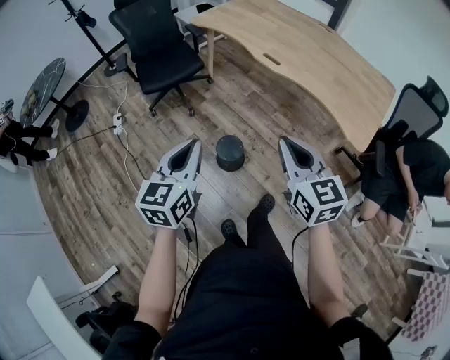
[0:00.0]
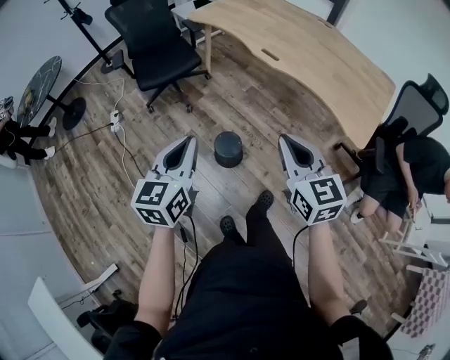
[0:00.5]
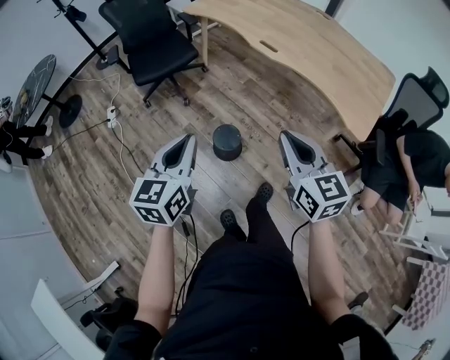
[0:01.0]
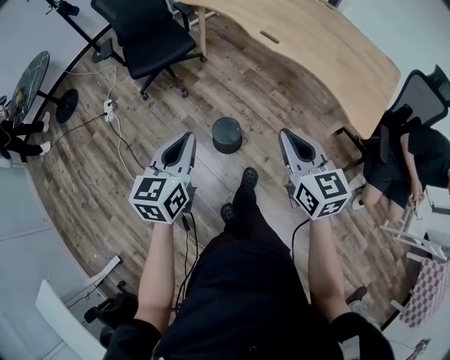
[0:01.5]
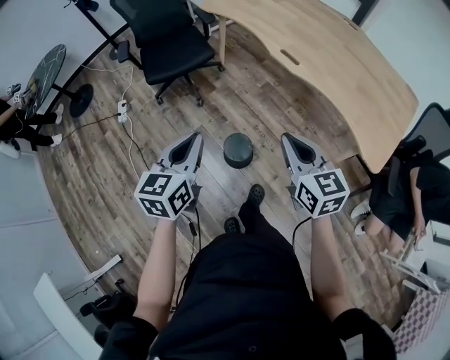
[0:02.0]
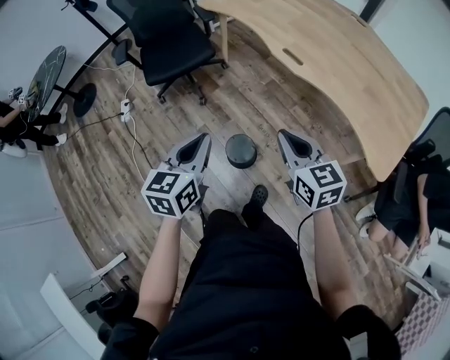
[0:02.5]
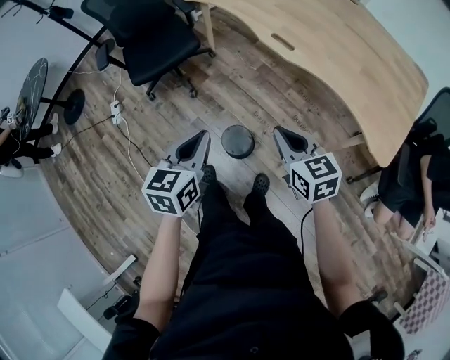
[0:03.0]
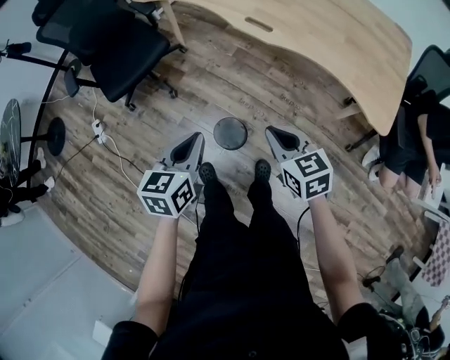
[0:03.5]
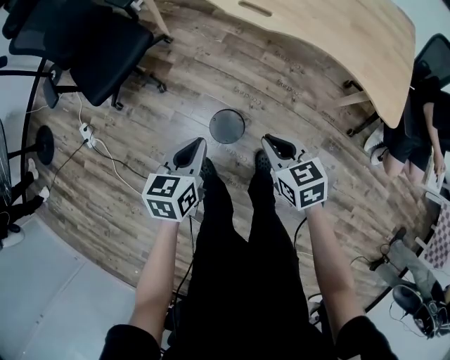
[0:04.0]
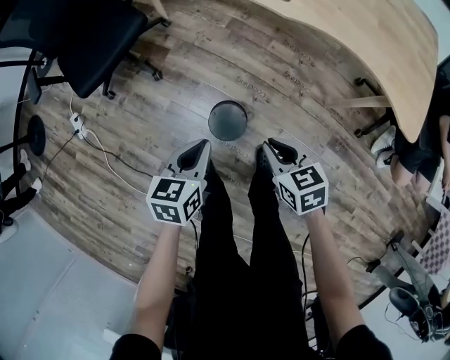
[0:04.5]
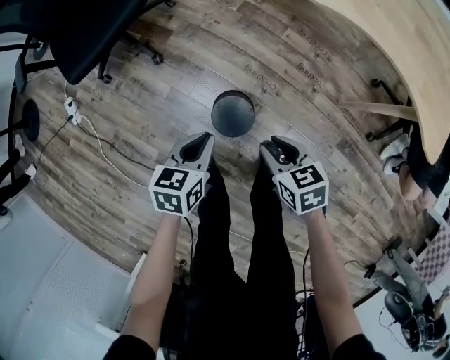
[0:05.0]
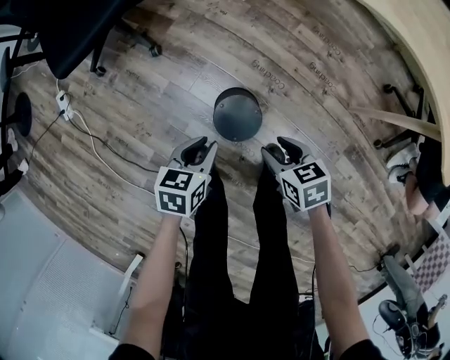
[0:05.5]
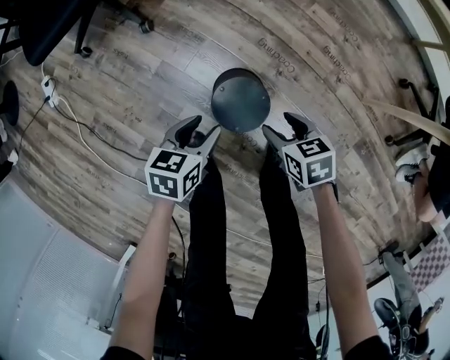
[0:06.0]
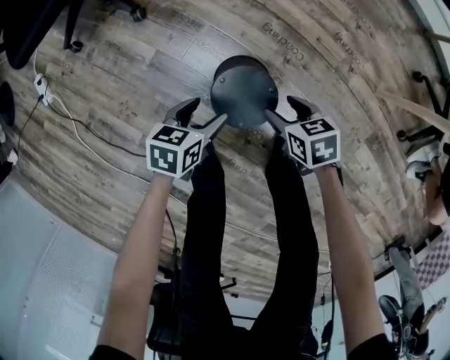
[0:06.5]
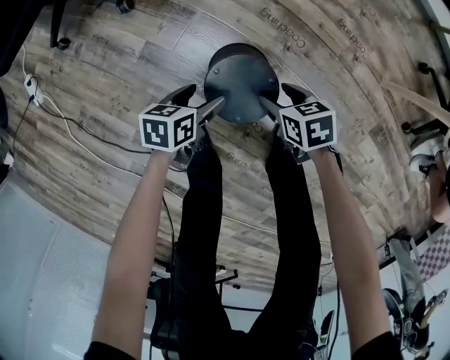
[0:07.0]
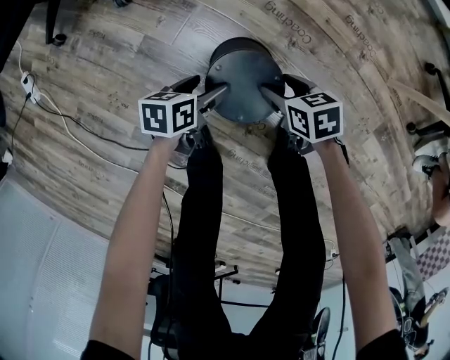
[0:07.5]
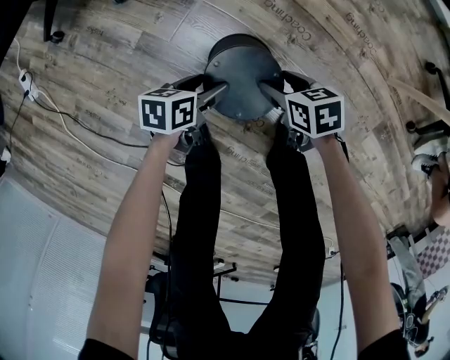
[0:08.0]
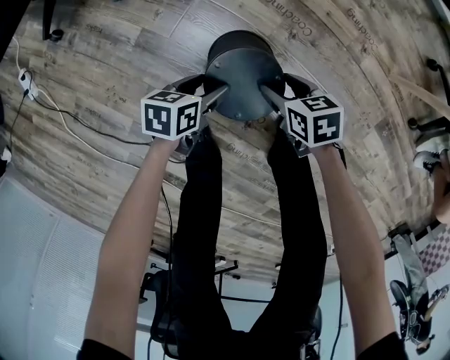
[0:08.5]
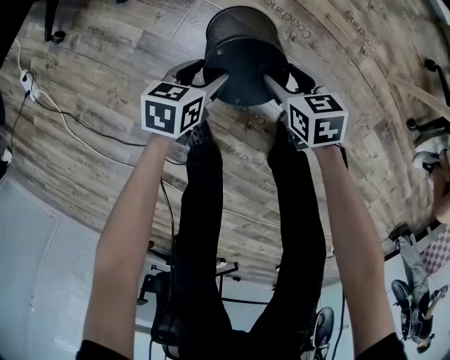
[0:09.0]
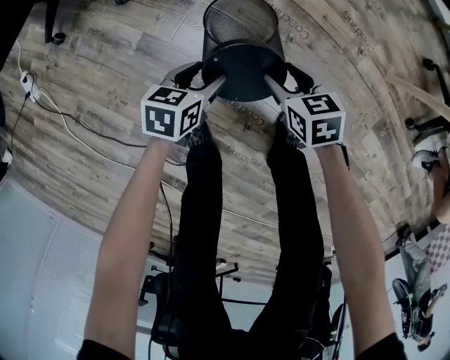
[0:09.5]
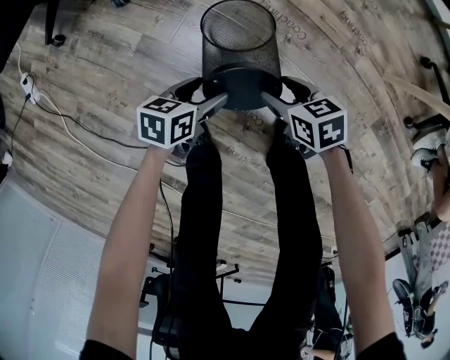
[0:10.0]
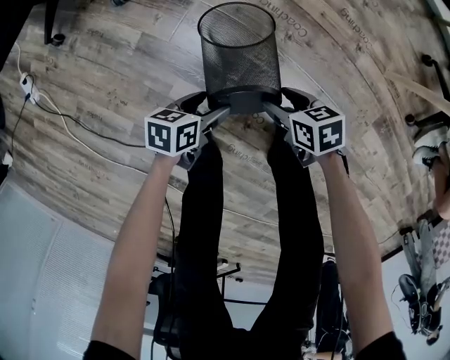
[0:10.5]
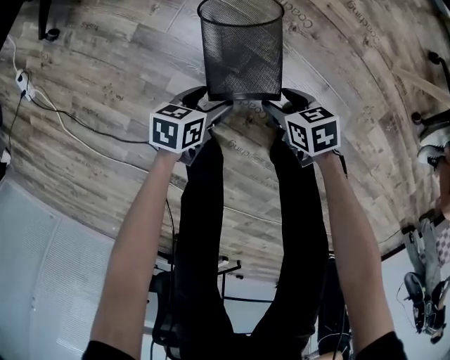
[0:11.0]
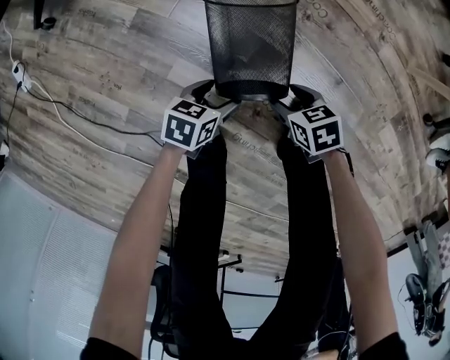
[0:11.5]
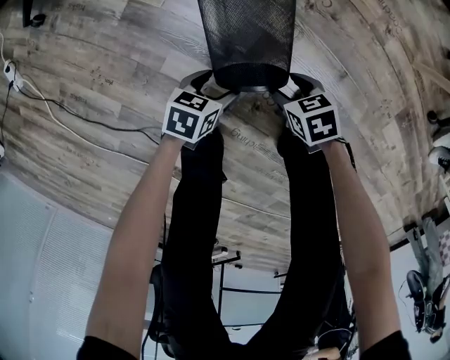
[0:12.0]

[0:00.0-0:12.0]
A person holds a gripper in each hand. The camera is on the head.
0:00.0 to 0:02.0: The left gripper moves forward, some 10 cm; the right gripper is displaced forward and downward by about 15 cm.
0:02.0 to 0:04.0: The right gripper is displaced downward by some 20 cm, and swivels some 30 degrees, while the left gripper is displaced downward and forward by some 20 cm, and turns by roughly 30 degrees.
0:04.0 to 0:06.0: The two grippers go some 40 cm downward. The right gripper changes its angle by some 20 degrees, and opens. The left gripper opens.
0:06.0 to 0:08.0: Both grippers travel together downward, approximately 15 cm.
0:10.0 to 0:12.0: Both grippers move downward, about 15 cm.

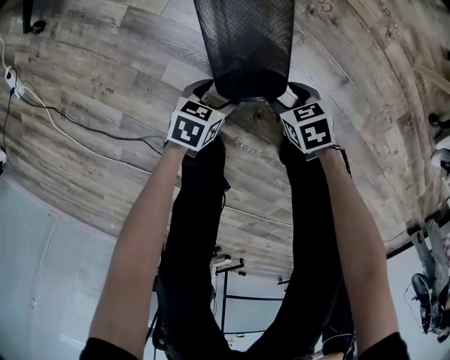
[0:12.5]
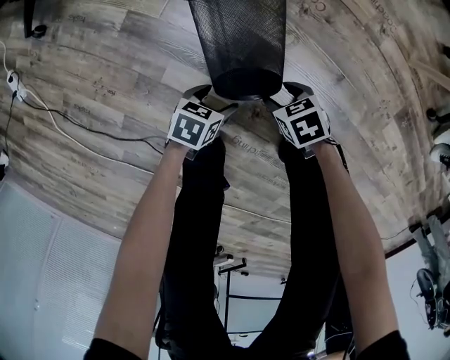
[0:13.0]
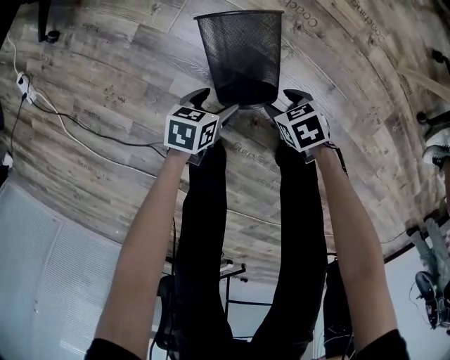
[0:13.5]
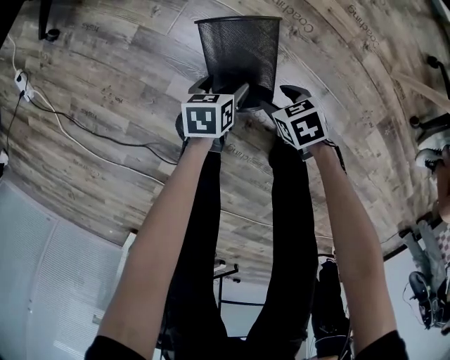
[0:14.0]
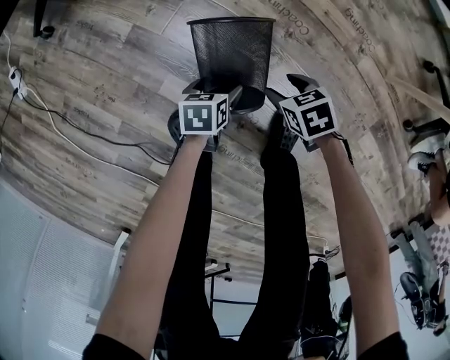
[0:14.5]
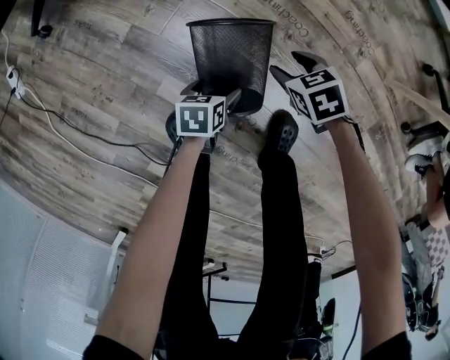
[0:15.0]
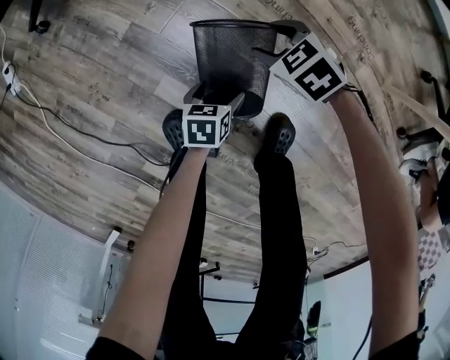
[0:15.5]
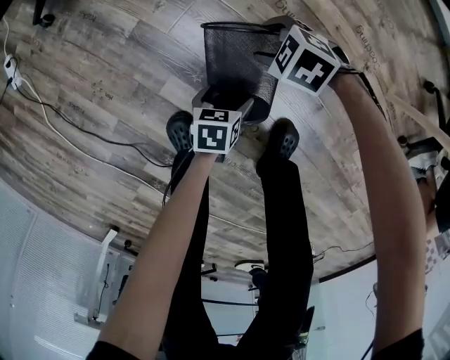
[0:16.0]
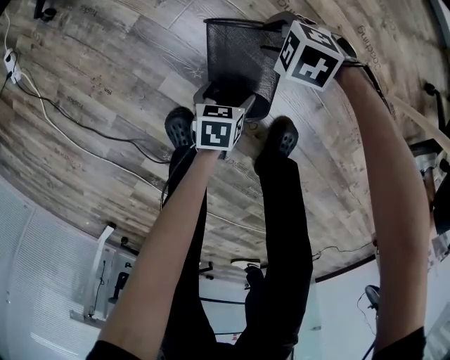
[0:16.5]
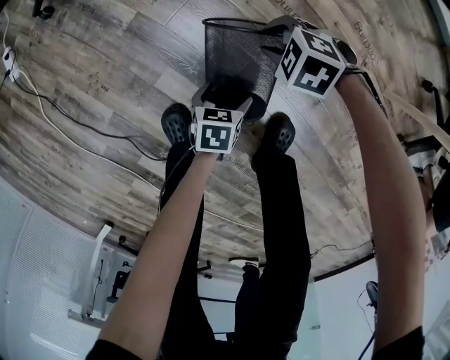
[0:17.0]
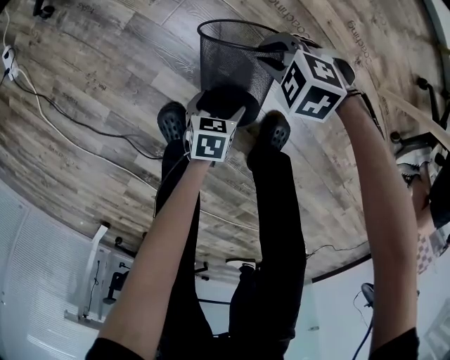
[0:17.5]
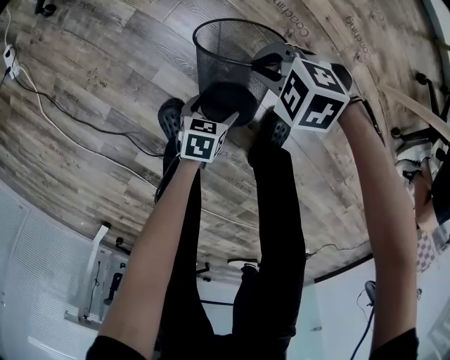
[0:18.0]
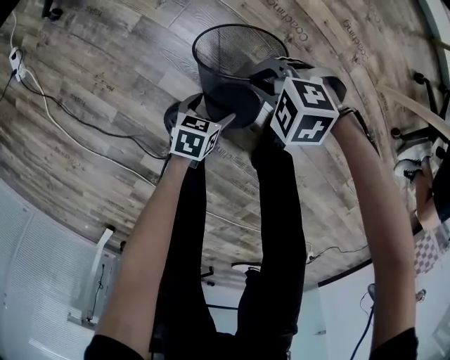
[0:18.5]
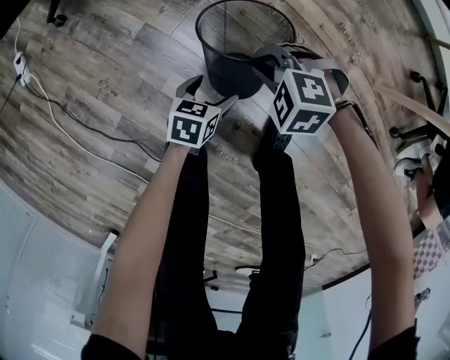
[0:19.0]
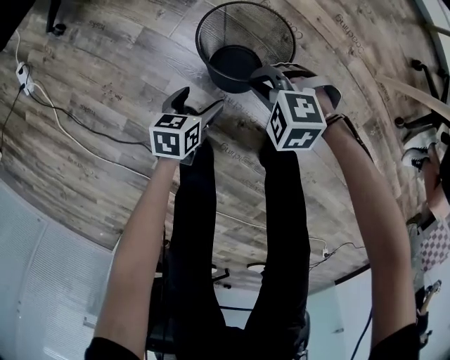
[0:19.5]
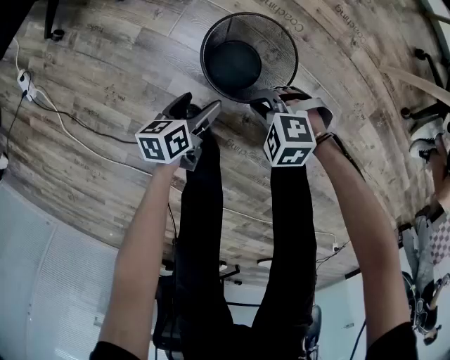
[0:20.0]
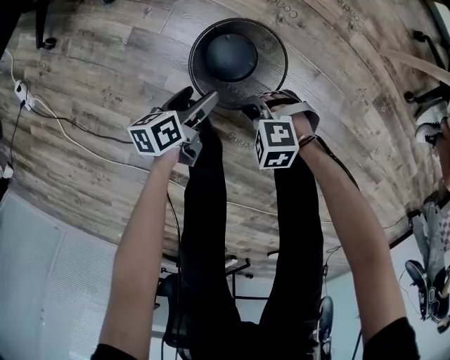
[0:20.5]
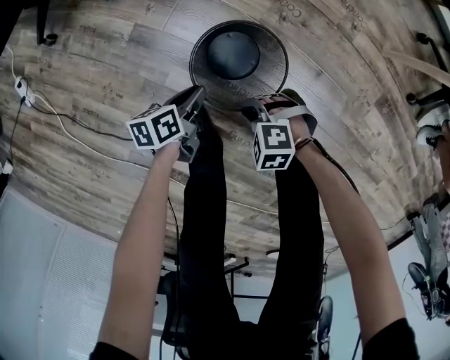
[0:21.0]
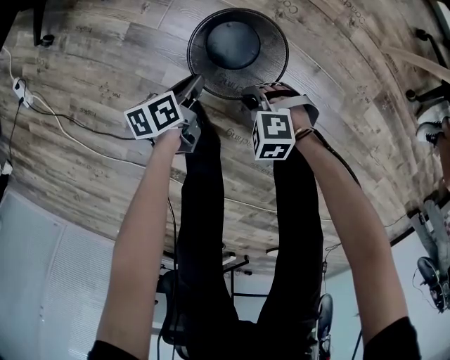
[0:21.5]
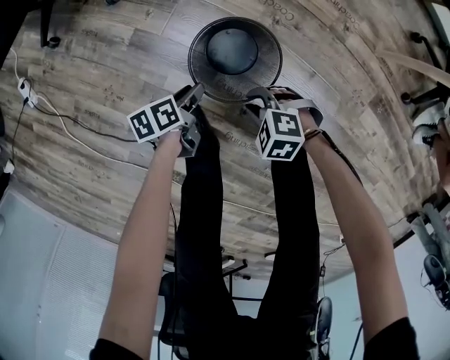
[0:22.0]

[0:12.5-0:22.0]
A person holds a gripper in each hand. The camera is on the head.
0:12.5 to 0:14.5: The left gripper changes place by about 10 cm, and turns by some 30 degrees; the right gripper shifts by some 15 cm.
0:14.5 to 0:16.5: The right gripper changes place by some 15 cm, and rolls counterclockwise, seen from behind, by about 60 degrees.
0:16.5 to 0:18.0: The left gripper ends up about 10 cm from where it was; the right gripper moves some 10 cm, and closes its fingers.
0:18.0 to 0:20.0: The left gripper travels upward by roughly 10 cm, and turns by some 20 degrees. Meanwhile the right gripper ends up approximately 10 cm from where it was.
0:20.0 to 0:22.0: The left gripper closes.

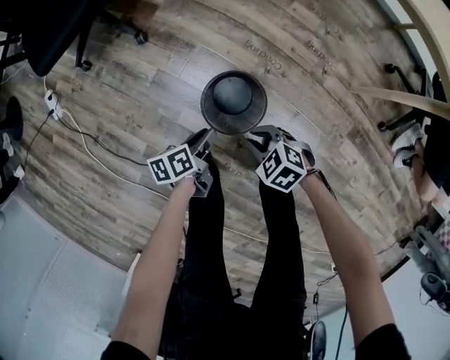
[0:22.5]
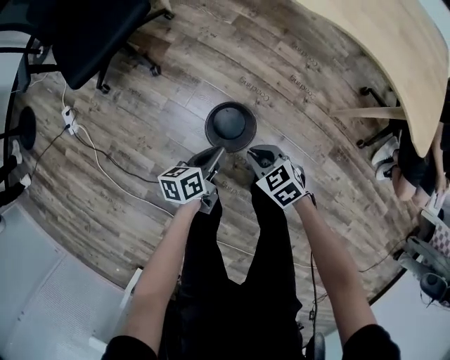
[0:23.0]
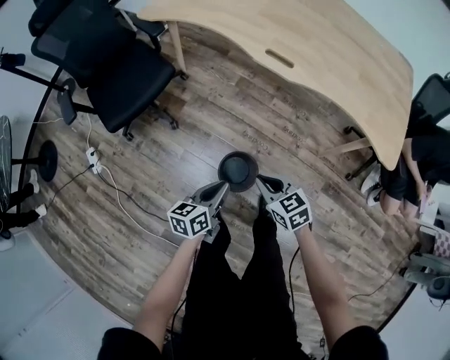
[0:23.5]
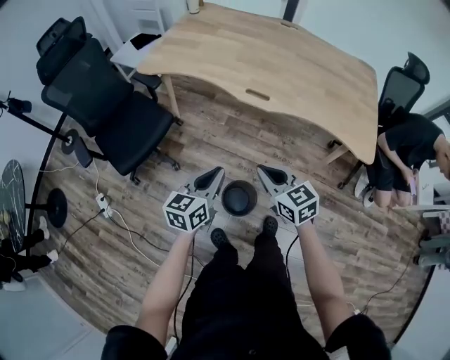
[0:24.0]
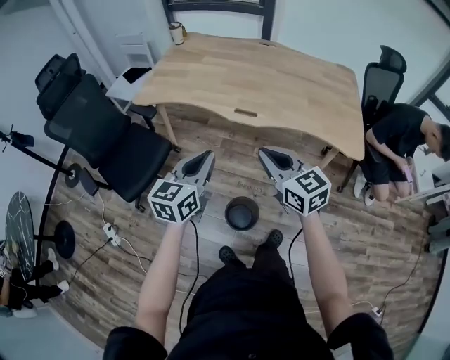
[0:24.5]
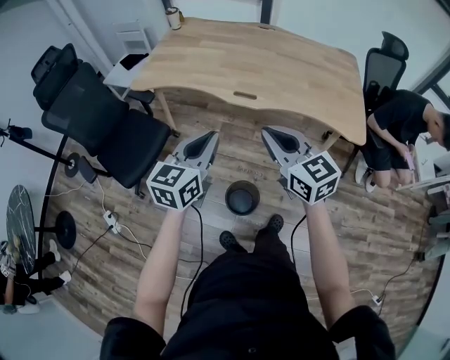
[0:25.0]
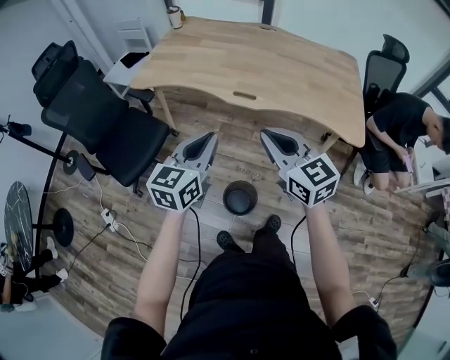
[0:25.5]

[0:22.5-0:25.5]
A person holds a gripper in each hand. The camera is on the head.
0:22.5 to 0:24.0: The grippers both shift upward by some 50 cm. The right gripper points its fingers approximately 40 degrees further upward. The left gripper rotates around the line of its fingers by some 50 degrees, clockwise from behind.
0:24.0 to 0:25.5: Both grippers move upward, about 15 cm.

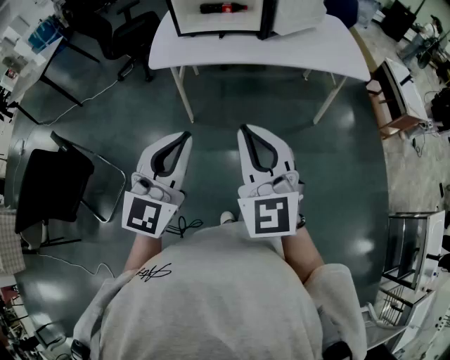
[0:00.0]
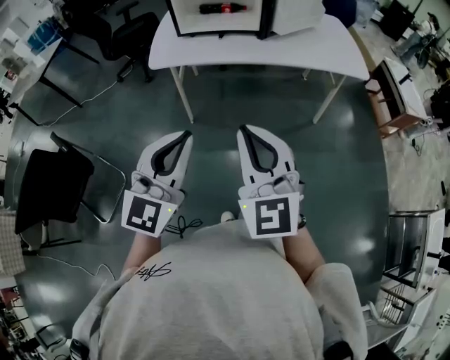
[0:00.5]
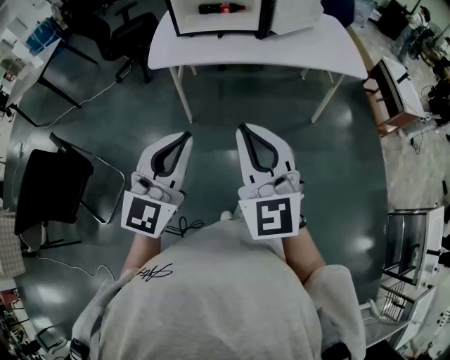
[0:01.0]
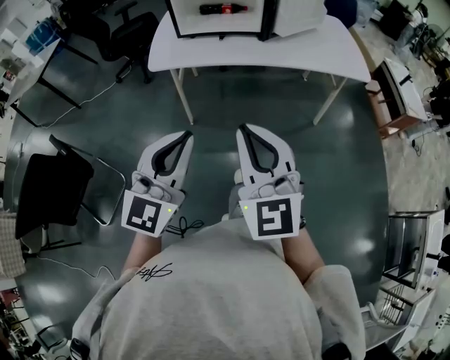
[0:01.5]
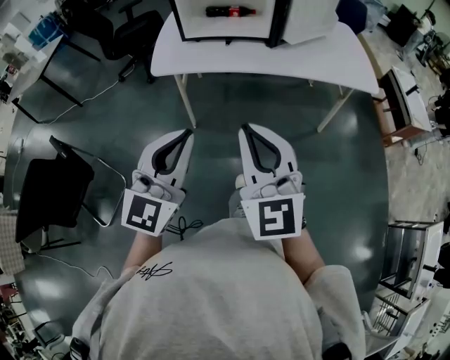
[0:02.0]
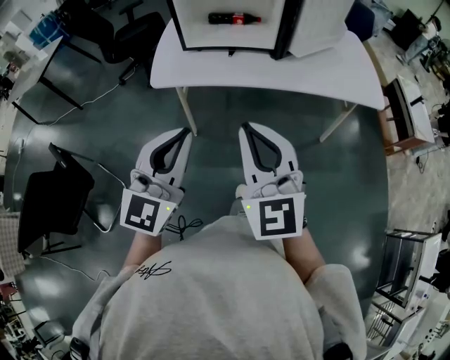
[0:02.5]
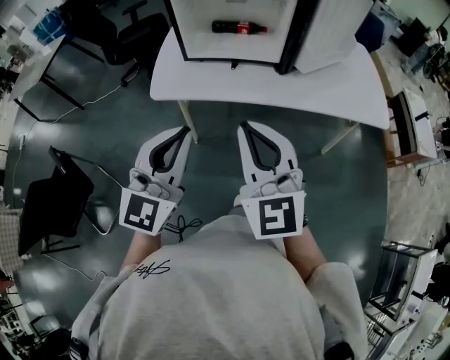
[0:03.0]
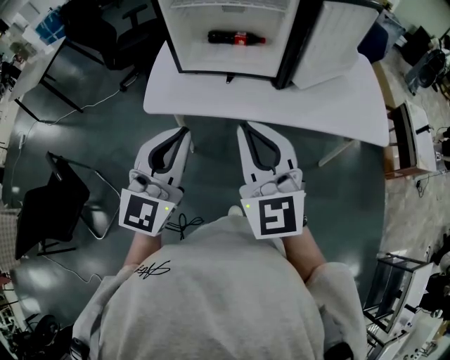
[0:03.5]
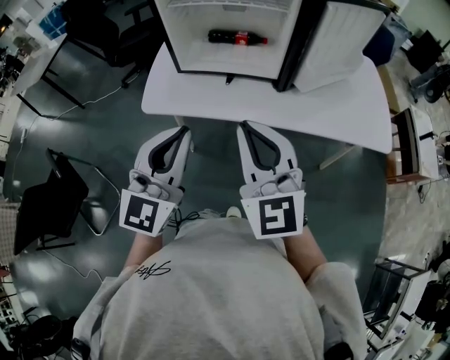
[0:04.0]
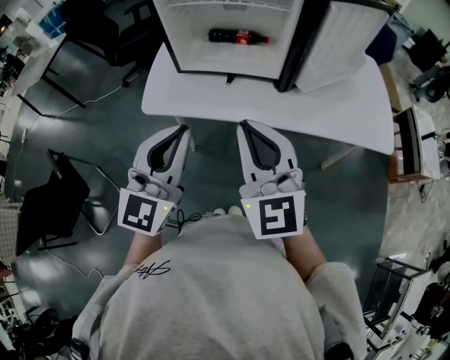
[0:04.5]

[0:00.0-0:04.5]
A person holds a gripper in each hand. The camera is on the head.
0:00.0 to 0:02.0: The two grippers go some 5 cm forward.
0:02.0 to 0:04.5: The grippers both shift forward by about 25 cm.
